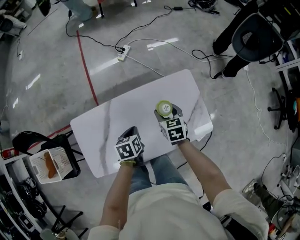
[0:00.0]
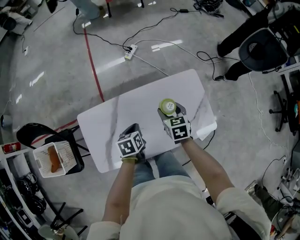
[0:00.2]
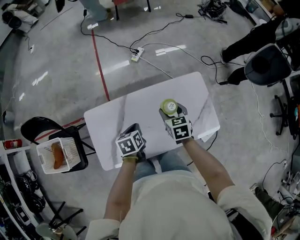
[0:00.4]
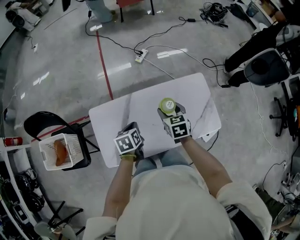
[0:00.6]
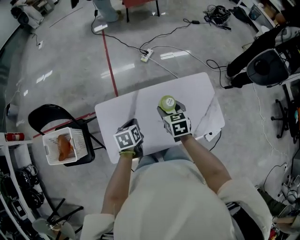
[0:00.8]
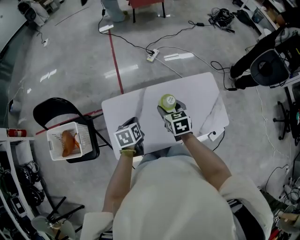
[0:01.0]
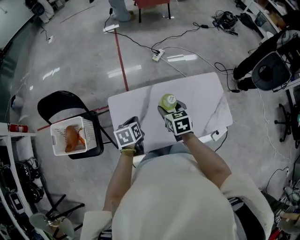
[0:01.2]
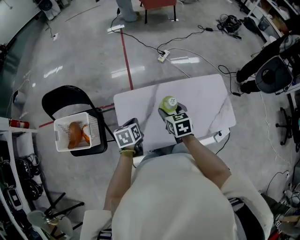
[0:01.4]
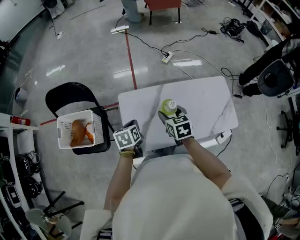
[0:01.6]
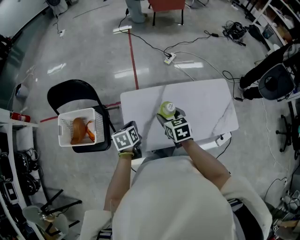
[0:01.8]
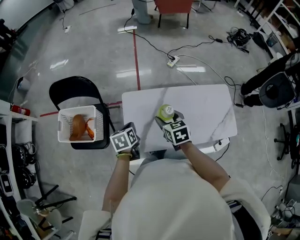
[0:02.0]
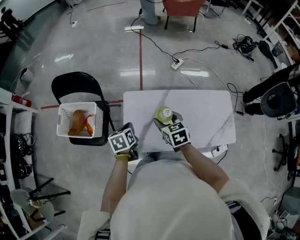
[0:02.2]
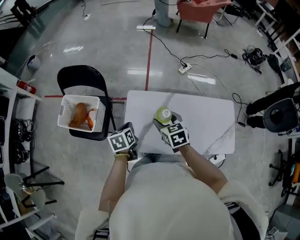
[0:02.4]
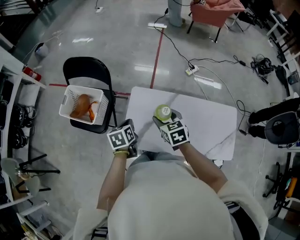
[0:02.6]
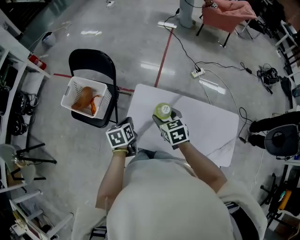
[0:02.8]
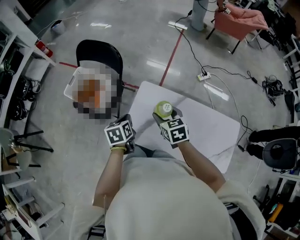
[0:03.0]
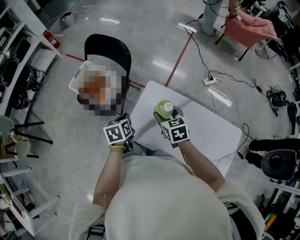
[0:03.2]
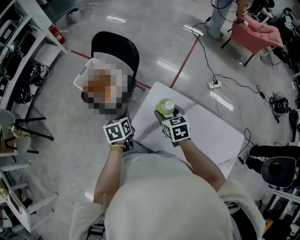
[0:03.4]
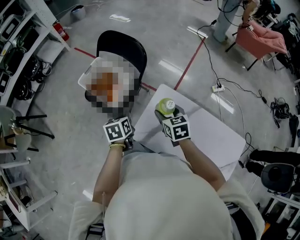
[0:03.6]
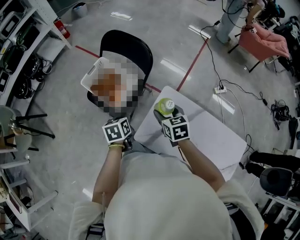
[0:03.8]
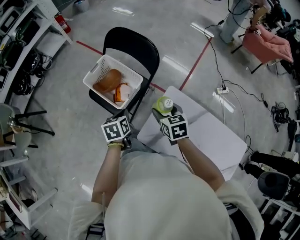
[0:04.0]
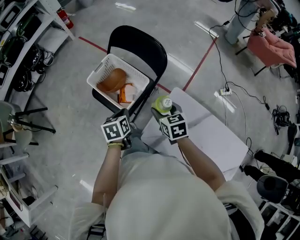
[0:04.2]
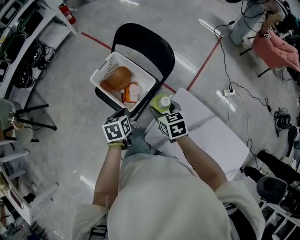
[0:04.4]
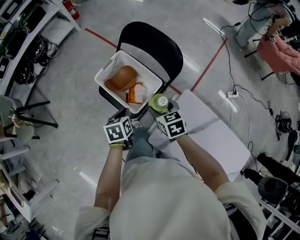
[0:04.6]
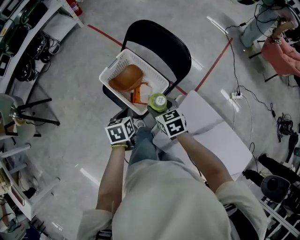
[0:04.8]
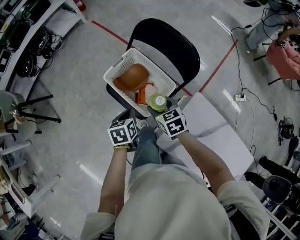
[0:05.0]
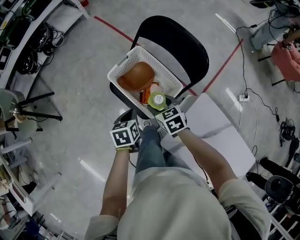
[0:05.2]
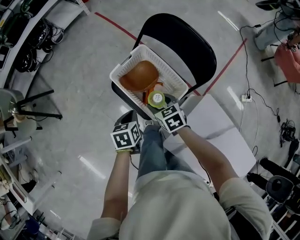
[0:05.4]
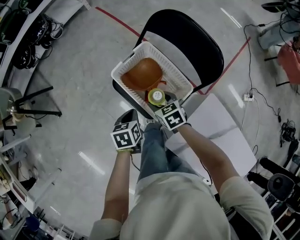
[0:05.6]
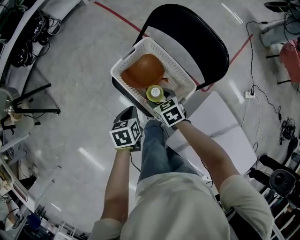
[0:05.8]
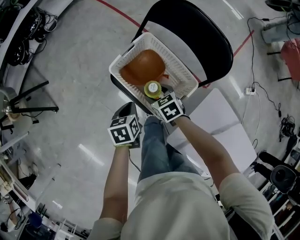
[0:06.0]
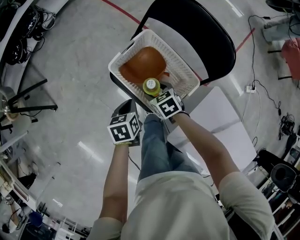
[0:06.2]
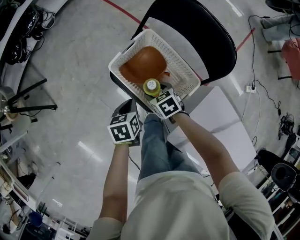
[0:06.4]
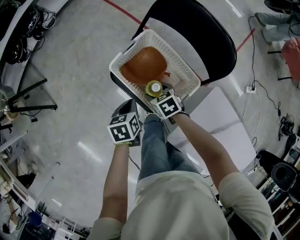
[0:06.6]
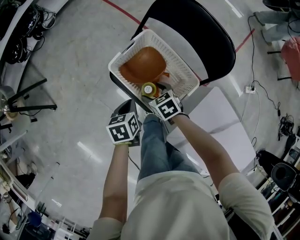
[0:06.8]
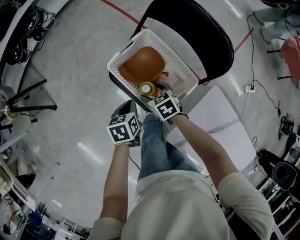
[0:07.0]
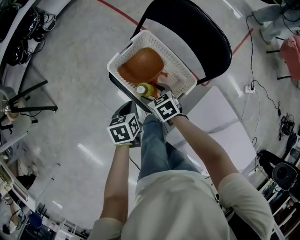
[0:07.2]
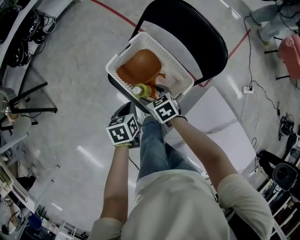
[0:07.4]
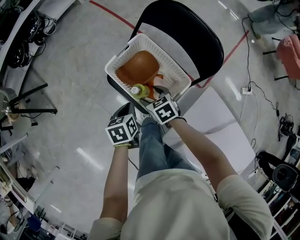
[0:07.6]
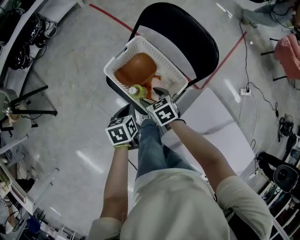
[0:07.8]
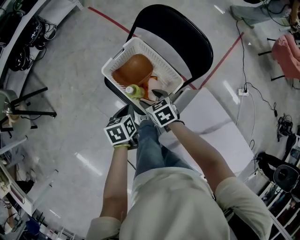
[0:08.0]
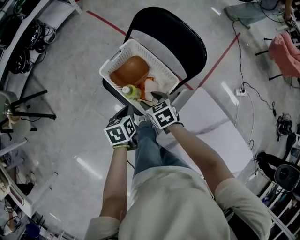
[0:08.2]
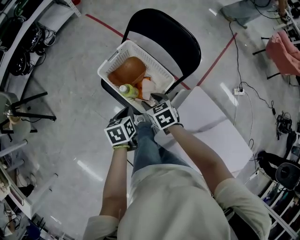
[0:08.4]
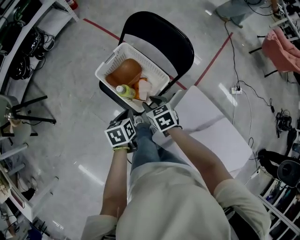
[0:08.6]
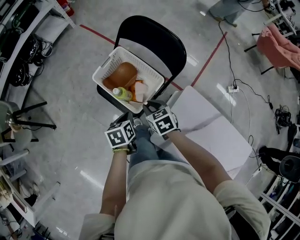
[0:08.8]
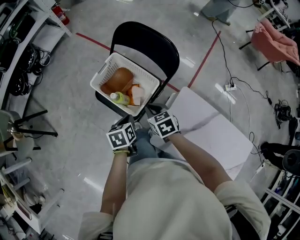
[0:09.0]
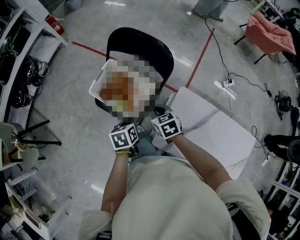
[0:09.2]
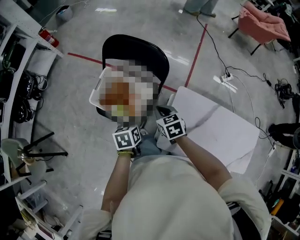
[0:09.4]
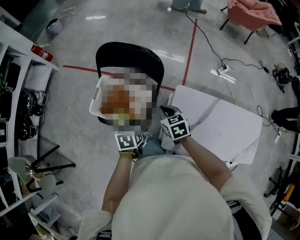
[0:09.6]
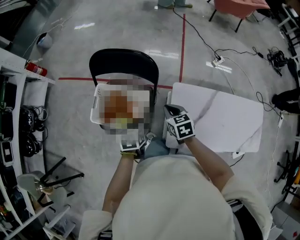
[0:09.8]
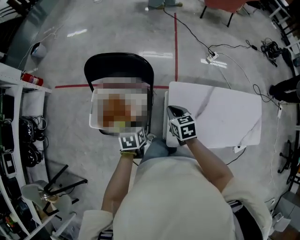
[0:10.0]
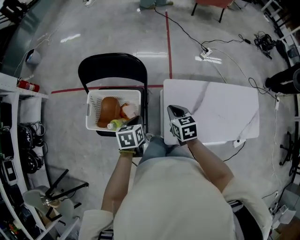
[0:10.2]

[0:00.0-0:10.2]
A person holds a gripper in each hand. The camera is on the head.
0:00.0 to 0:01.4: The right gripper heads to the left, upward and backward, covering about 35 cm. The left gripper heads to the left, covering some 30 cm.
0:01.4 to 0:03.0: The right gripper moves approximately 15 cm, and rotates roughly 40 degrees, while the left gripper changes place by about 10 cm, and turns by about 30 degrees.
0:03.0 to 0:04.4: The grippers both shift to the left and forward by roughly 30 cm.
0:04.4 to 0:05.8: The left gripper moves to the left, downward and forward, some 15 cm; the right gripper is displaced downward, to the left and forward by roughly 25 cm, and rotates some 20 degrees.
0:05.8 to 0:07.2: The grippers make only small movements.
0:07.2 to 0:08.8: The left gripper goes about 15 cm backward, upward and to the right, while the right gripper is displaced upward, backward and to the right by some 15 cm, and closes its fingers.
0:08.8 to 0:10.2: The right gripper changes place by roughly 20 cm, and rotates some 50 degrees. The left gripper changes place by about 15 cm, and changes its angle by approximately 40 degrees.

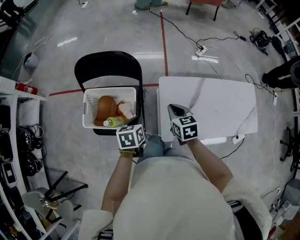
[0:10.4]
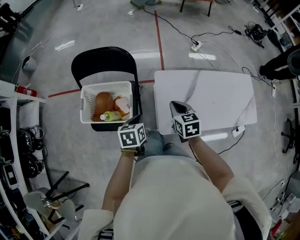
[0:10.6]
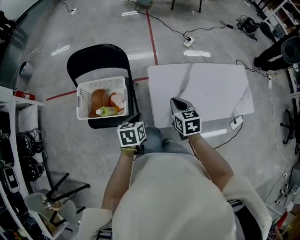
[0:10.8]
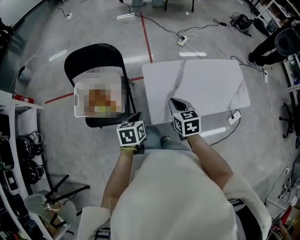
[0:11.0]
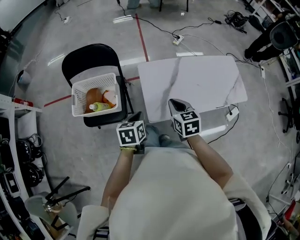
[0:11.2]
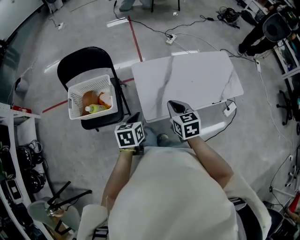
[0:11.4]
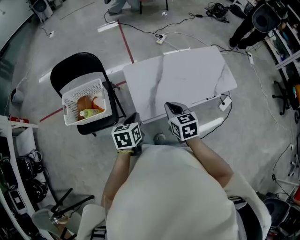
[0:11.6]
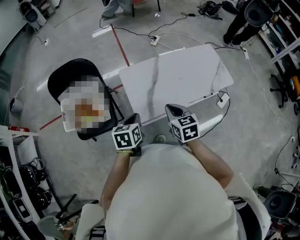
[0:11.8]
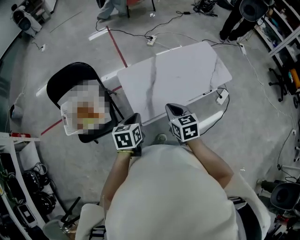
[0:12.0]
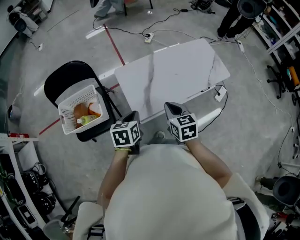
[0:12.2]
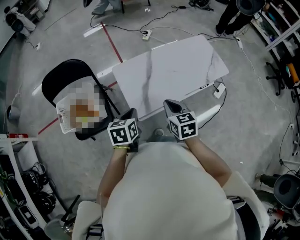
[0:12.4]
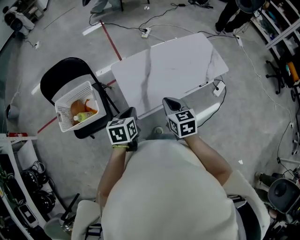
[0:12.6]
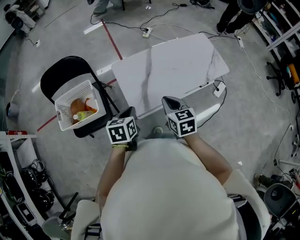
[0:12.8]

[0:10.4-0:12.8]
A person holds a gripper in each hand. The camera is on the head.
0:10.4 to 0:11.6: The two grippers go roughly 25 cm backward and to the right.
0:11.6 to 0:12.8: The grippers stay close to where they were, moving slightly.

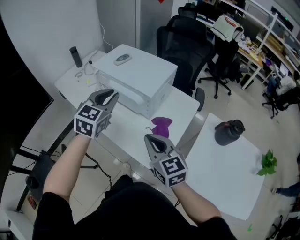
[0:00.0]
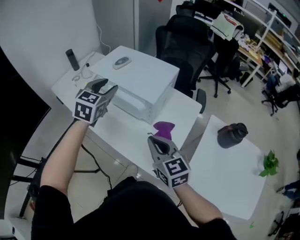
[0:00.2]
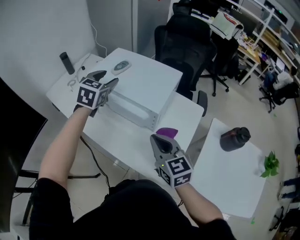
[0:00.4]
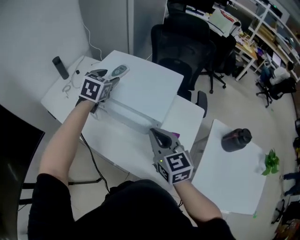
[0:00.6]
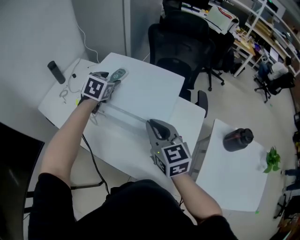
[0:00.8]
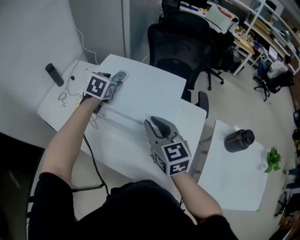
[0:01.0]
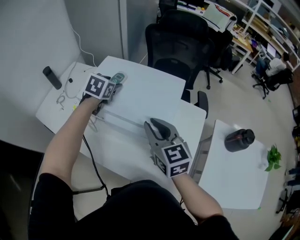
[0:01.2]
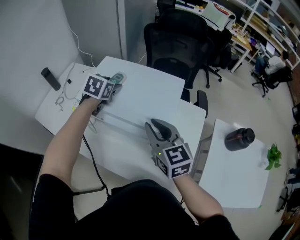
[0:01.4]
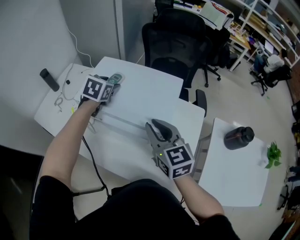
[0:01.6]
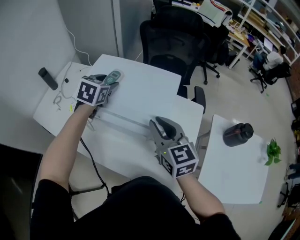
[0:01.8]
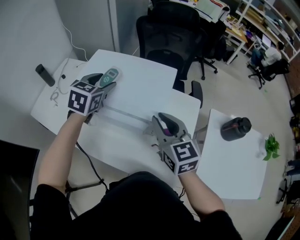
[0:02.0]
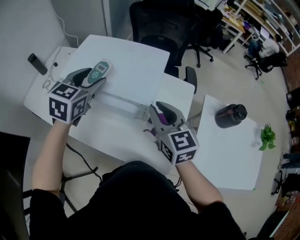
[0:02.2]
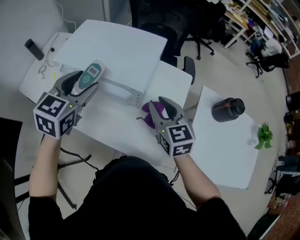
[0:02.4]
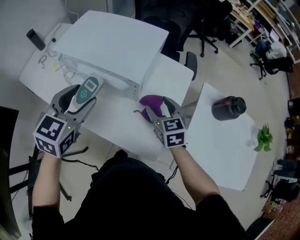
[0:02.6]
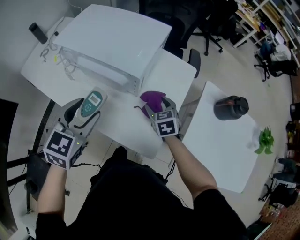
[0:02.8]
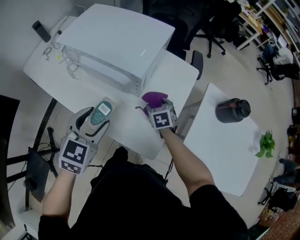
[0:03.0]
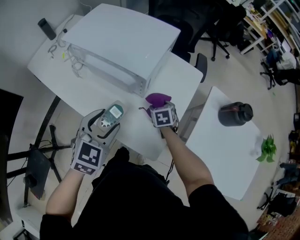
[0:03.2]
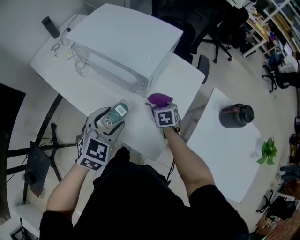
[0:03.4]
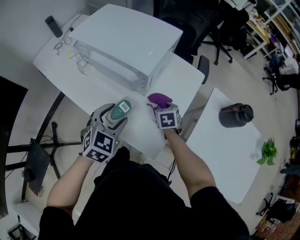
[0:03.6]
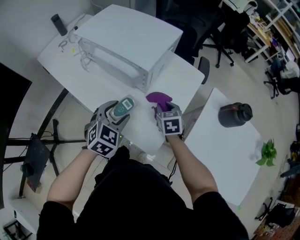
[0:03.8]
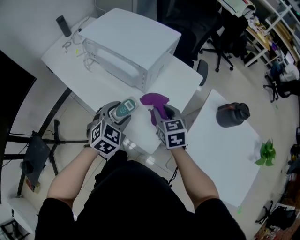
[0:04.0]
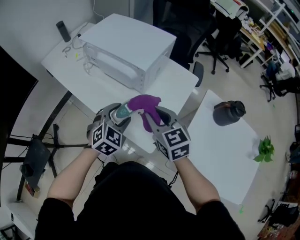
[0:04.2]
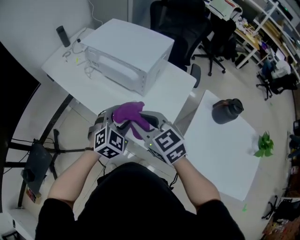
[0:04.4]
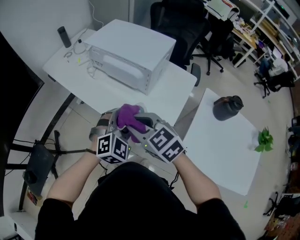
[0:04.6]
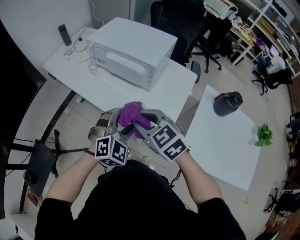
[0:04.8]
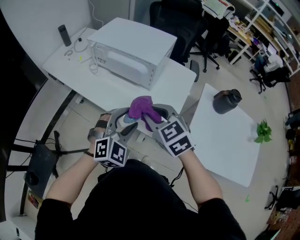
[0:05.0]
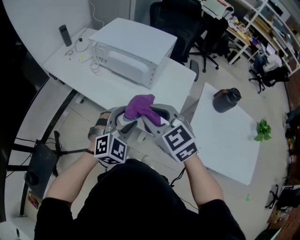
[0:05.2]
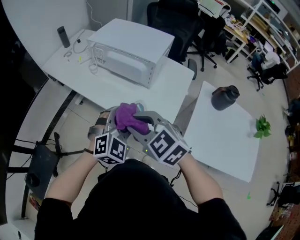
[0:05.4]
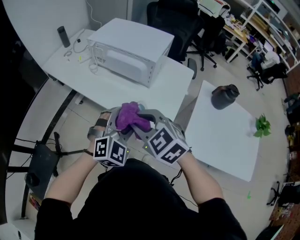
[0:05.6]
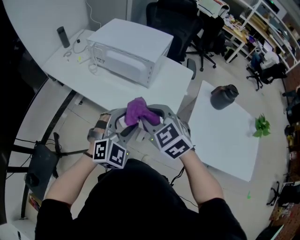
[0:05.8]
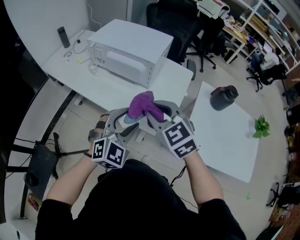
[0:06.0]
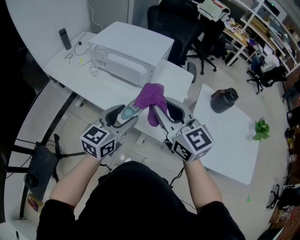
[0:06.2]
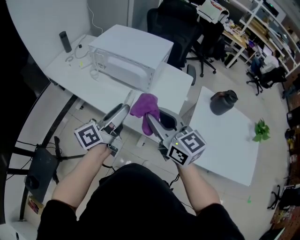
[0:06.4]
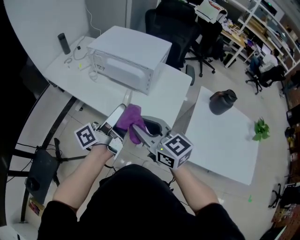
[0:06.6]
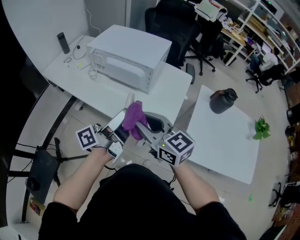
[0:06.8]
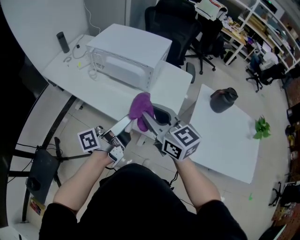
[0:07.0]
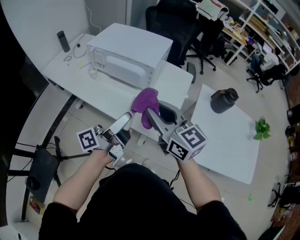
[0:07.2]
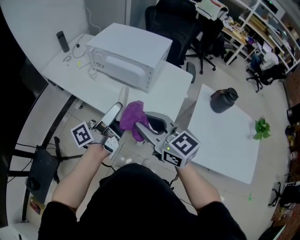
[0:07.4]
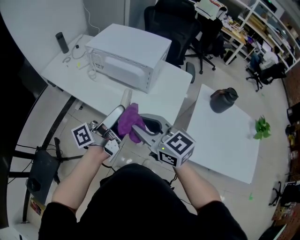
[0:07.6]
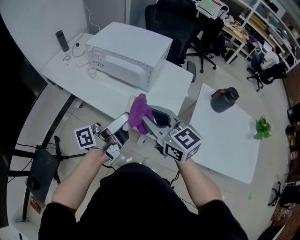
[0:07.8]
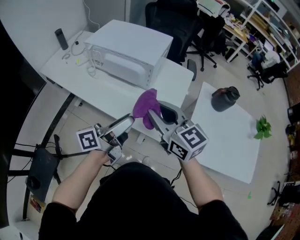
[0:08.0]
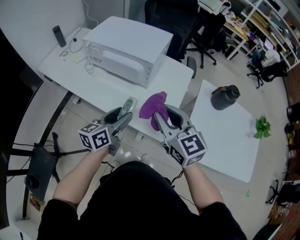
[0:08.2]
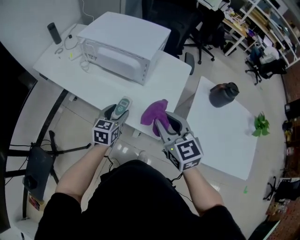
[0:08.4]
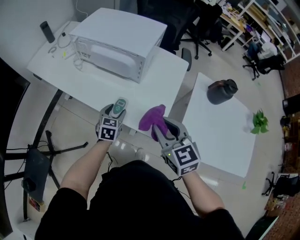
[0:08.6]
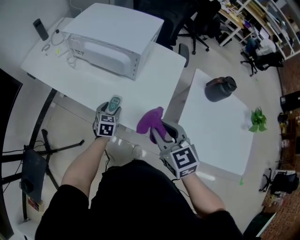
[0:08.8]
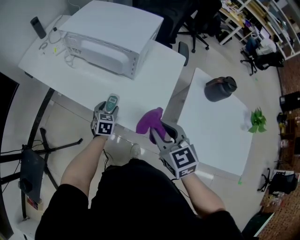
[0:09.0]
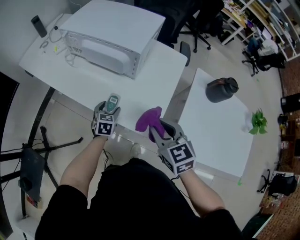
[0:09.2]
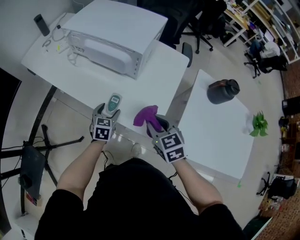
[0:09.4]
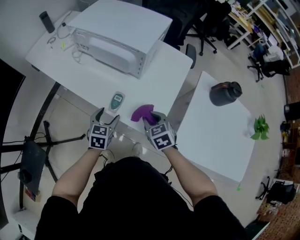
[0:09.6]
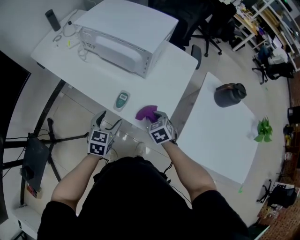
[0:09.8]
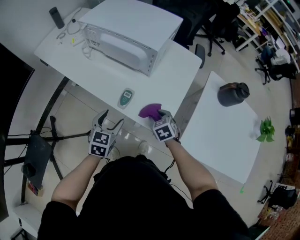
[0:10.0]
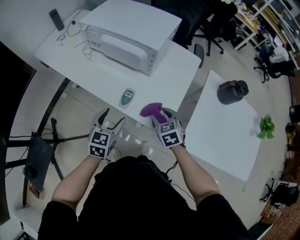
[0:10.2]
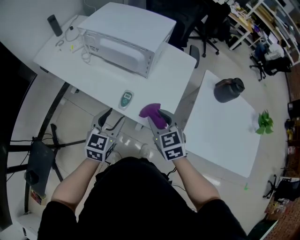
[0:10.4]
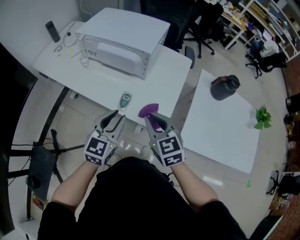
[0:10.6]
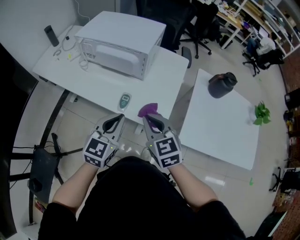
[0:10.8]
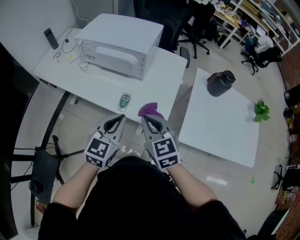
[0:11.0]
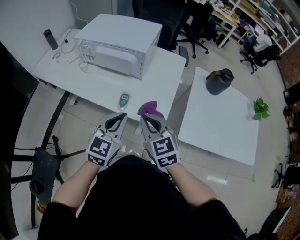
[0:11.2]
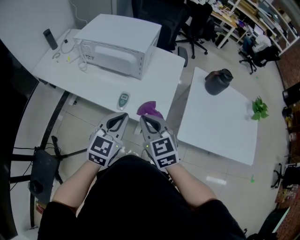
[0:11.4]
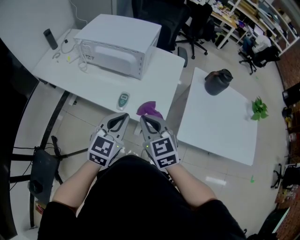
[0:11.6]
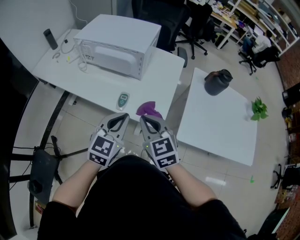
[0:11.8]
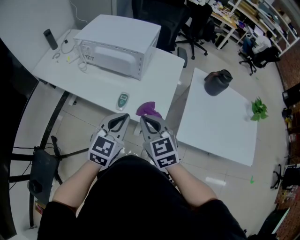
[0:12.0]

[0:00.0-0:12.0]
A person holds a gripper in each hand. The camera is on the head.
0:00.0 to 0:01.6: Both grippers travel together forward, roughly 30 cm. The left gripper changes its angle by about 20 degrees, and opens up.
0:01.6 to 0:03.0: The right gripper shifts about 30 cm downward and to the right, points its fingers some 40 degrees further downward, and opens up, while the left gripper heads backward, covering roughly 35 cm.
0:03.0 to 0:04.4: The right gripper moves upward, backward and to the left, approximately 35 cm, swivels roughly 40 degrees, and closes; the left gripper is displaced to the right and backward by about 10 cm, and turns by roughly 20 degrees.
0:04.4 to 0:06.0: The right gripper moves approximately 10 cm to the left and comes back. Meanwhile the left gripper travels backward and upward by about 15 cm.
0:06.0 to 0:07.6: The left gripper shifts about 5 cm upward, and rotates around the line of its fingers by some 100 degrees, counterclockwise from behind. The right gripper turns by roughly 30 degrees.
0:07.6 to 0:09.0: The left gripper heads downward, covering approximately 35 cm, and tilts its fingers about 70 degrees downward. The right gripper moves to the right and downward, about 15 cm, and turns by some 30 degrees.
0:09.0 to 0:10.4: The left gripper shifts roughly 20 cm upward and backward, and rotates roughly 20 degrees, while the right gripper travels downward and back again, roughly 20 cm each way.
0:10.4 to 0:12.0: The right gripper heads upward and backward, covering approximately 10 cm, and closes. The left gripper travels upward and to the right by approximately 10 cm, and closes up.
